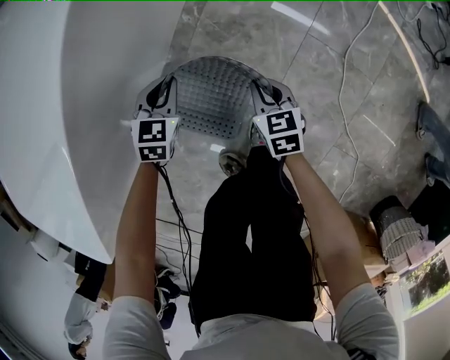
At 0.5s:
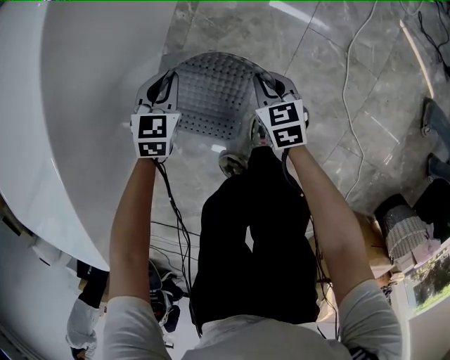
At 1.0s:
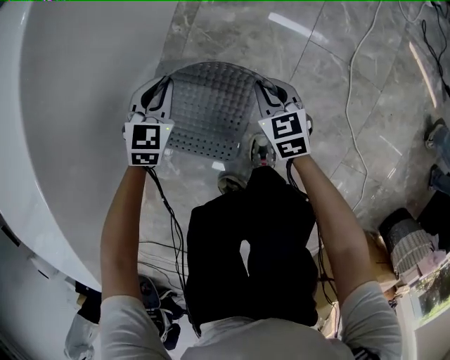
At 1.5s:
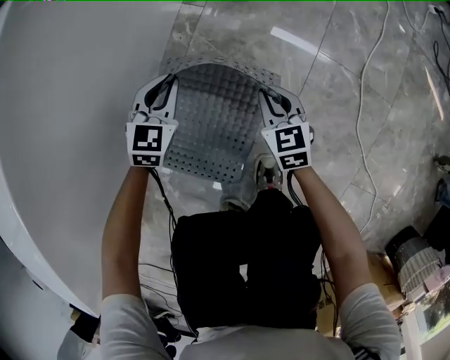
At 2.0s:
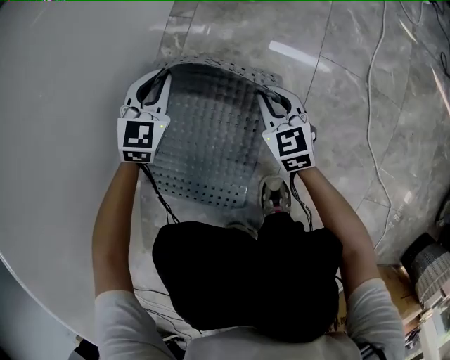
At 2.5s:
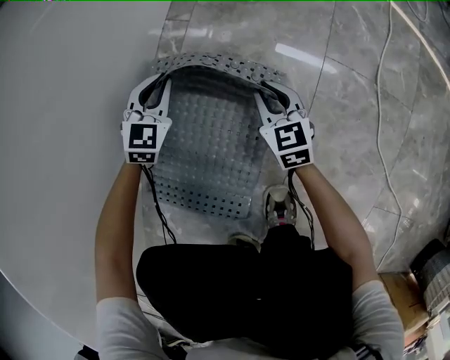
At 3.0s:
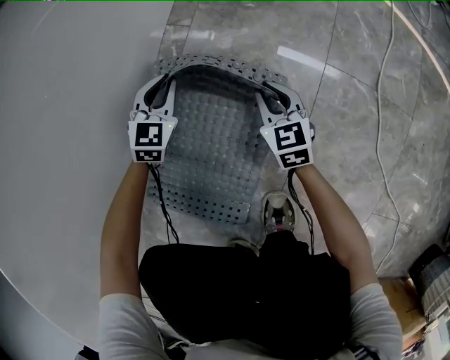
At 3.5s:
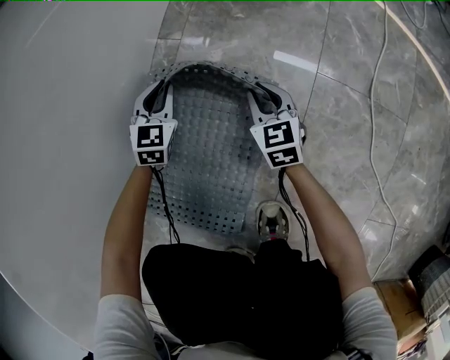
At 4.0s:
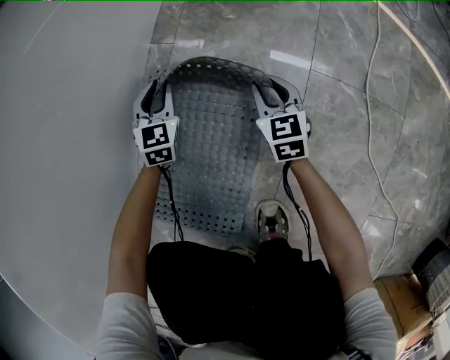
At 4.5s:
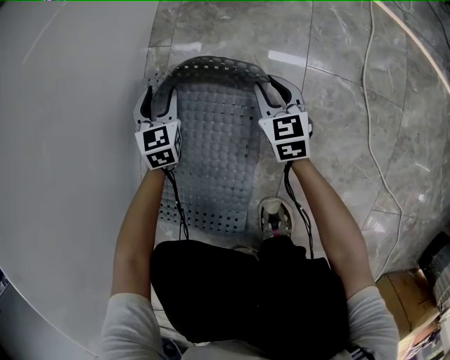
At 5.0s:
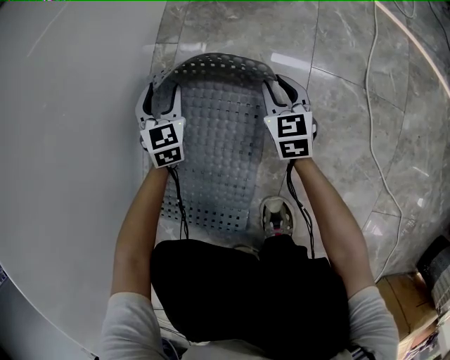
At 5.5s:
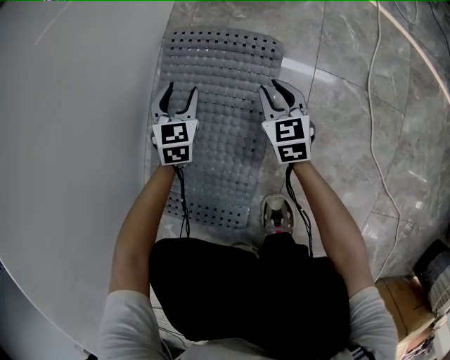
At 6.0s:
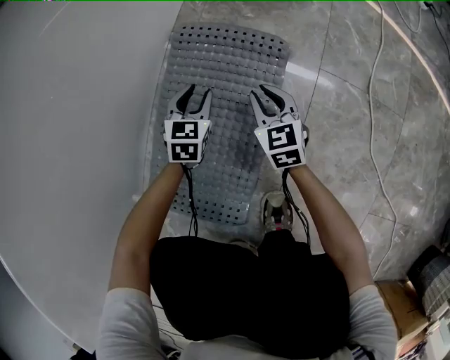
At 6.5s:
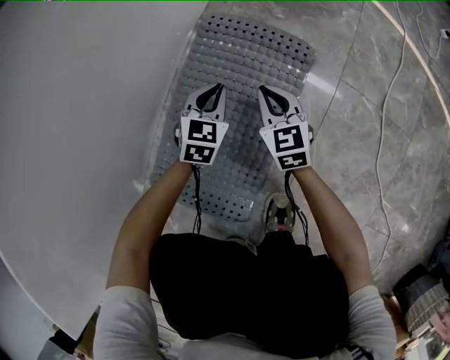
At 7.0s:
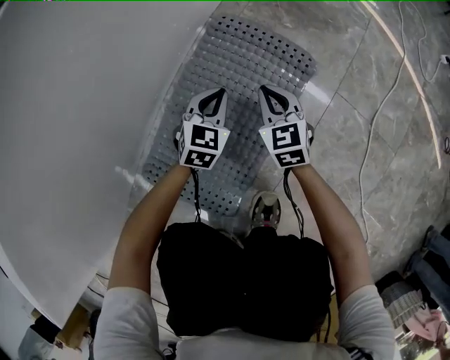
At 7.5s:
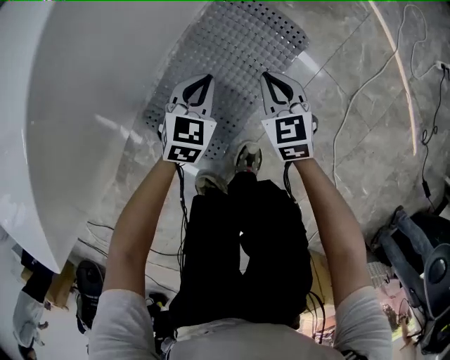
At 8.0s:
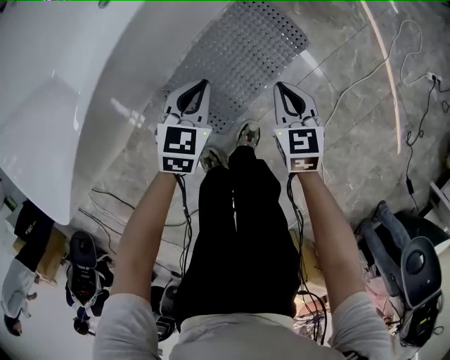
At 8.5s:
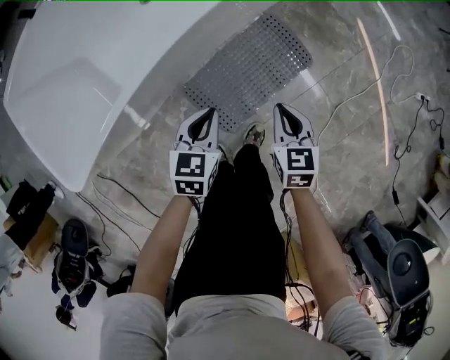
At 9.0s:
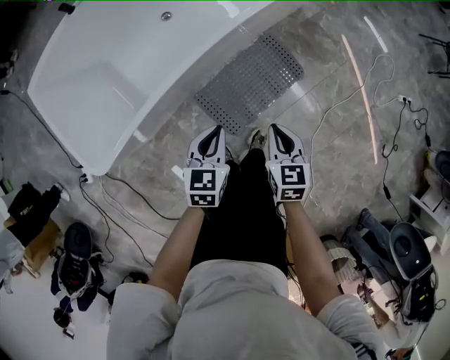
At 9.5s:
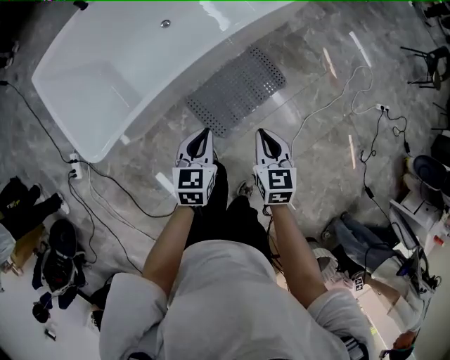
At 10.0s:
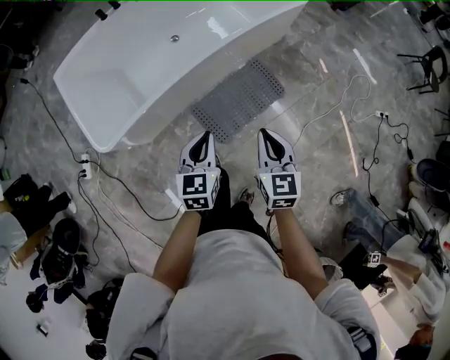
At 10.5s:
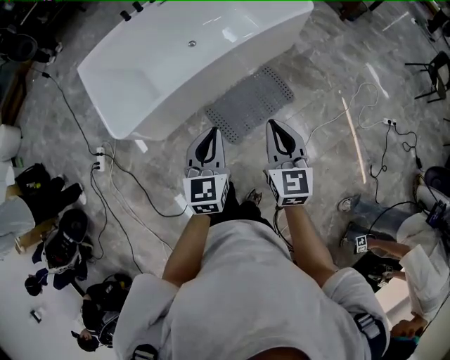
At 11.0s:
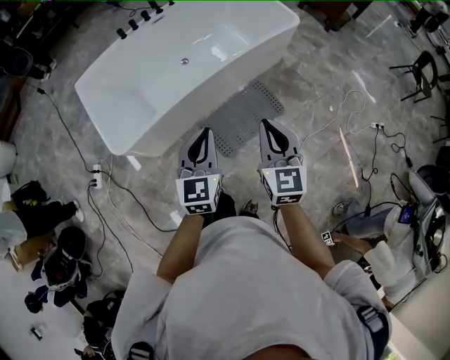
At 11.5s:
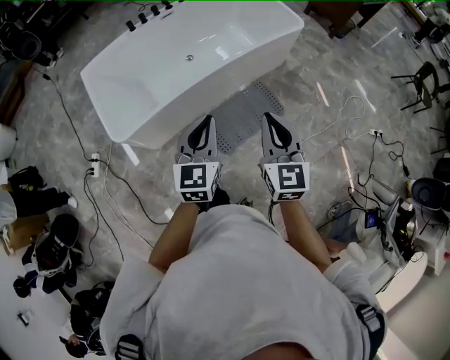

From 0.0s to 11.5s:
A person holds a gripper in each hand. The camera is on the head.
From 0.0s to 2.0s: The right gripper heads downward, covering approximately 20 cm, and rotates approximately 20 degrees. Meanwhile the left gripper goes approximately 20 cm downward and forward, and swivels some 30 degrees.
From 2.0s to 4.0s: The left gripper goes some 10 cm downward and forward, while the right gripper travels forward and to the right by approximately 10 cm.
From 4.0s to 6.0s: The left gripper shifts about 5 cm backward, and opens its fingers. The right gripper goes about 5 cm to the left.
From 6.0s to 7.5s: The left gripper goes approximately 20 cm upward and backward, and closes; the right gripper heads upward, covering about 15 cm, and rotates about 20 degrees.
From 7.5s to 9.5s: The left gripper moves upward and backward, roughly 60 cm, and swivels approximately 30 degrees. Meanwhile the right gripper heads upward, covering roughly 50 cm.
From 9.5s to 11.5s: The right gripper heads upward, covering roughly 30 cm, and turns by about 30 degrees. The left gripper heads upward and backward, covering approximately 30 cm, and rotates approximately 30 degrees.

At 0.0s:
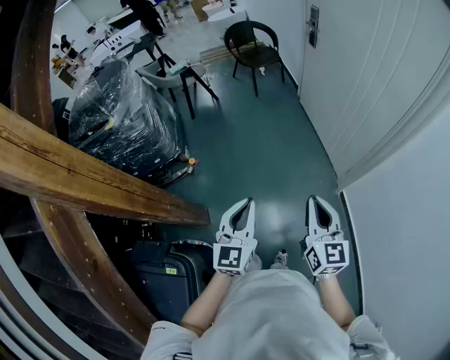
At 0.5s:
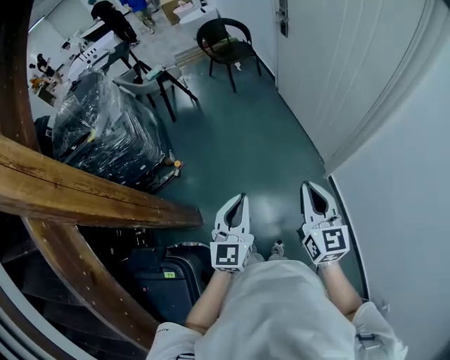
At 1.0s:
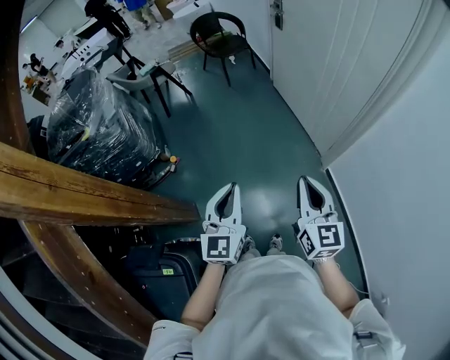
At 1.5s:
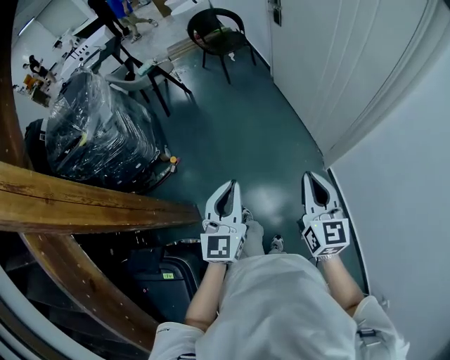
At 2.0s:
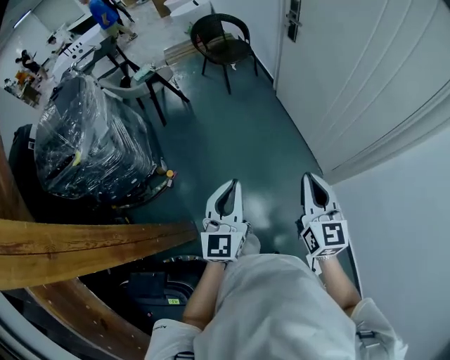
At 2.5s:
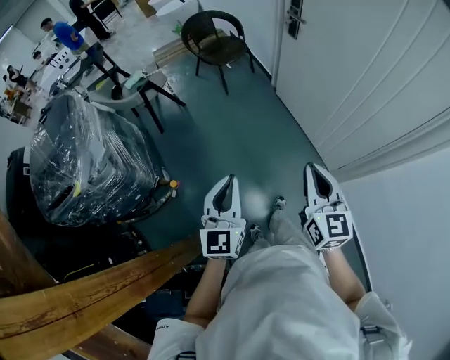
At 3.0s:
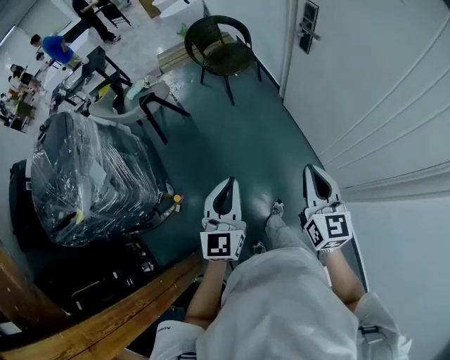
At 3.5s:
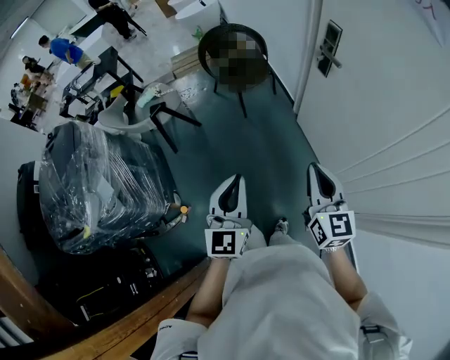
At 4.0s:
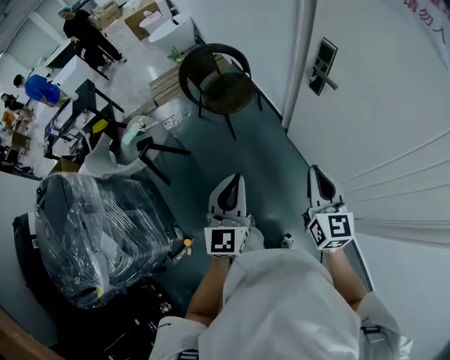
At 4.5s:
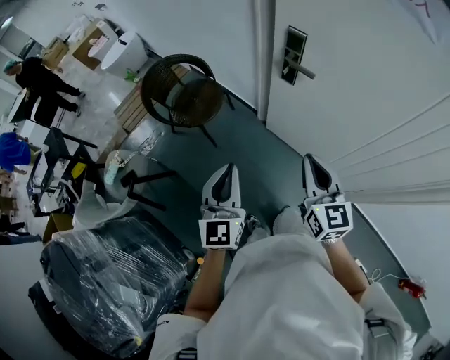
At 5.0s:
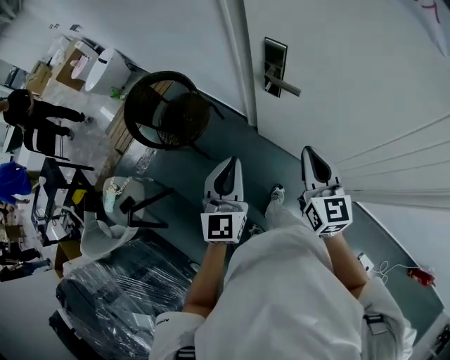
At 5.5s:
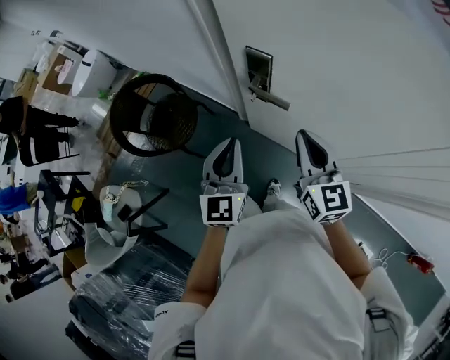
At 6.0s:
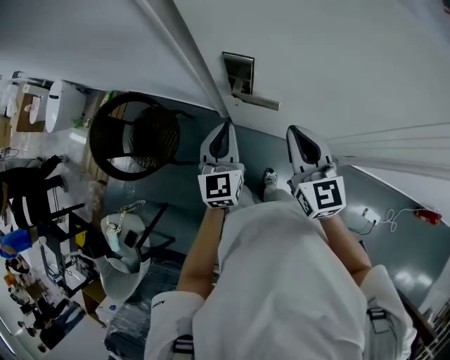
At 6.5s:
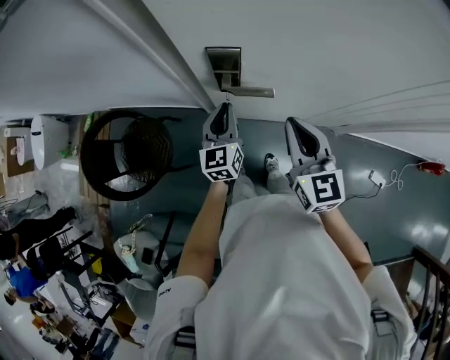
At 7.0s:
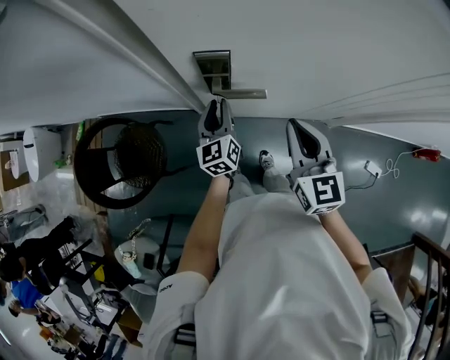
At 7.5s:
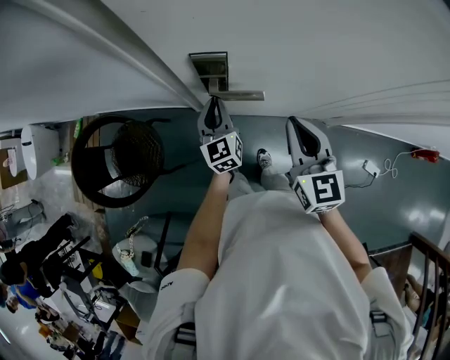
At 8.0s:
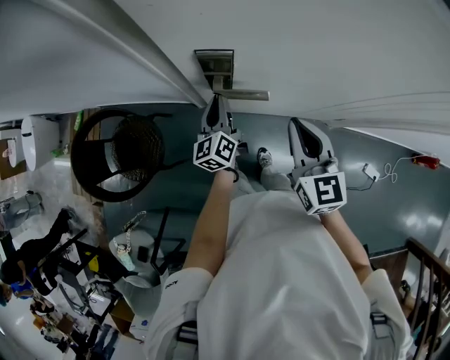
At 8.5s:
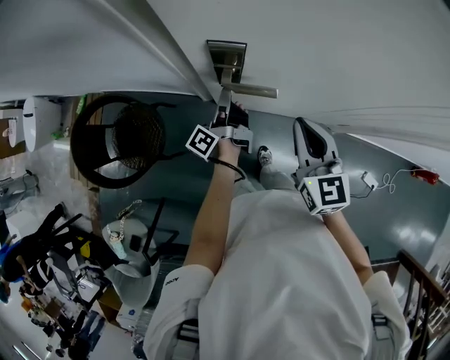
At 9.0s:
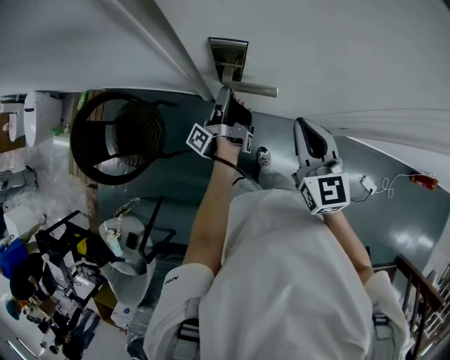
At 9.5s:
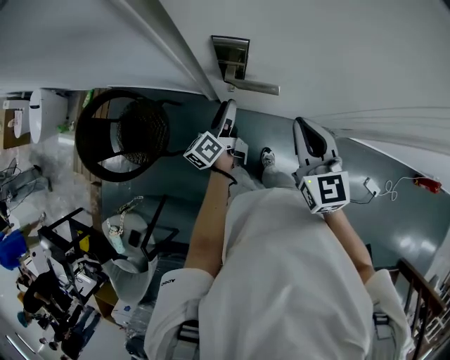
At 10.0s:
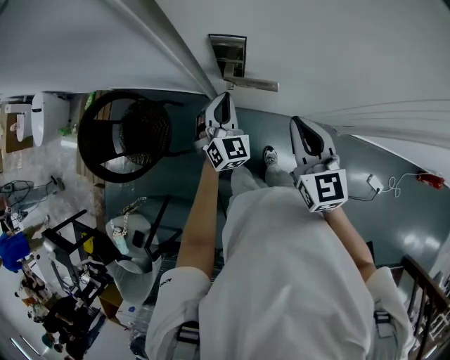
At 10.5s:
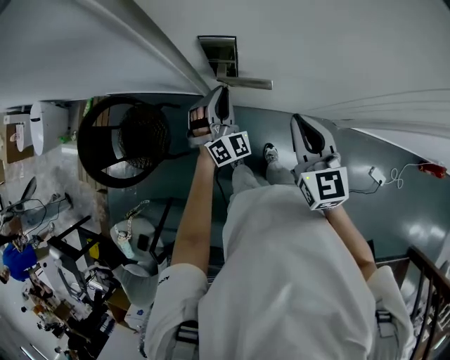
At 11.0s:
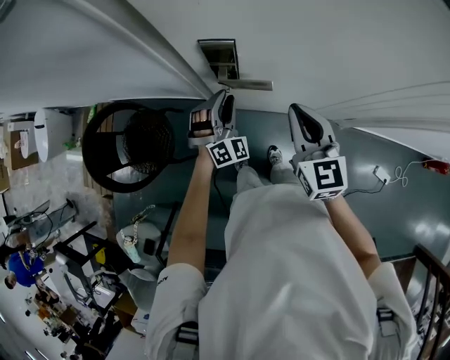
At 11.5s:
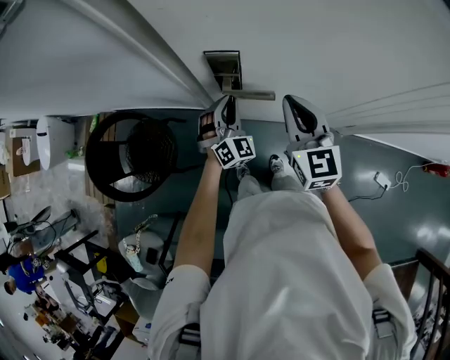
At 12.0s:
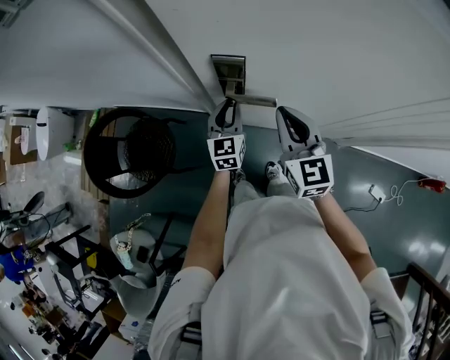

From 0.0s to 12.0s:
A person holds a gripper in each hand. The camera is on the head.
From 0.0s to 2.0s: Both grippers move forward, approximately 20 cm.
From 2.0s to 4.0s: The two grippers travel together, forward, roughly 50 cm.
From 4.0s to 6.0s: The left gripper changes place by approximately 50 cm, and turns by some 40 degrees, while the right gripper ends up some 30 cm from where it was, and rotates roughly 30 degrees.
From 6.0s to 8.0s: The left gripper is displaced downward and forward by some 15 cm, and turns by approximately 40 degrees.
From 8.0s to 10.0s: The left gripper rolls clockwise, seen from behind, by roughly 70 degrees, and opens and closes again.
From 10.0s to 12.0s: The right gripper is displaced forward by some 5 cm; the left gripper rotates roughly 40 degrees.

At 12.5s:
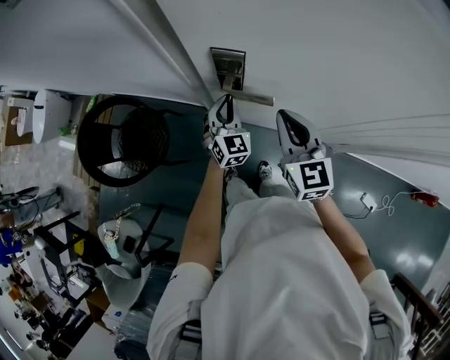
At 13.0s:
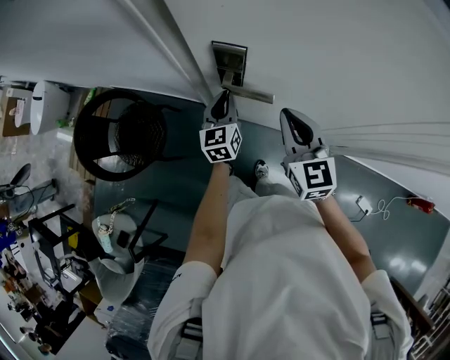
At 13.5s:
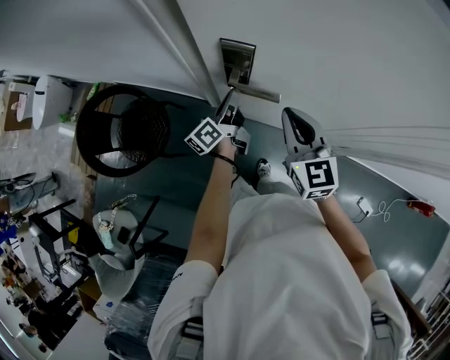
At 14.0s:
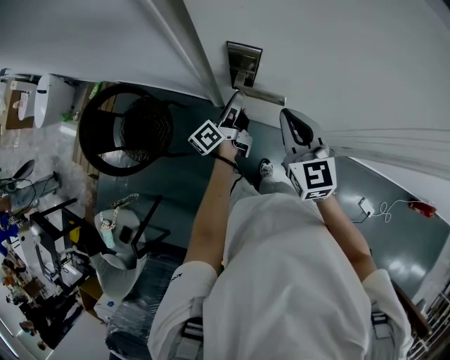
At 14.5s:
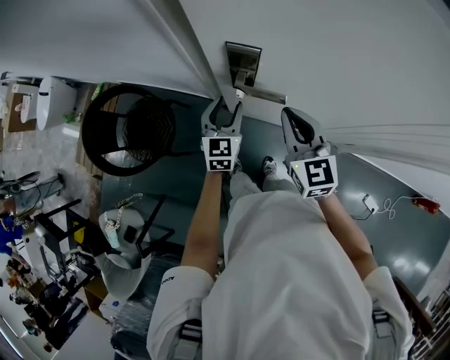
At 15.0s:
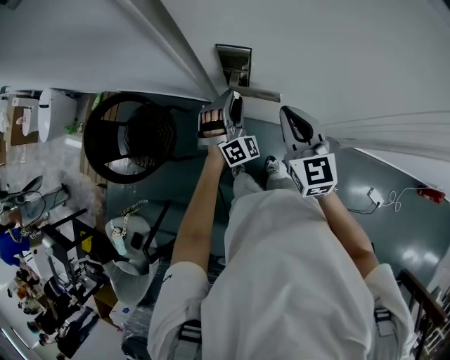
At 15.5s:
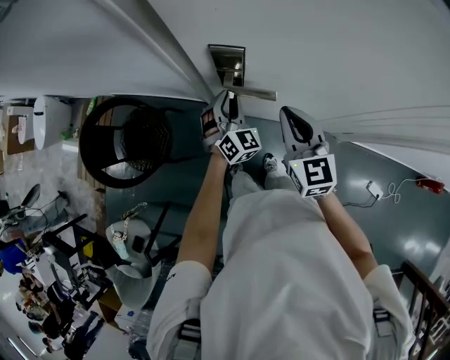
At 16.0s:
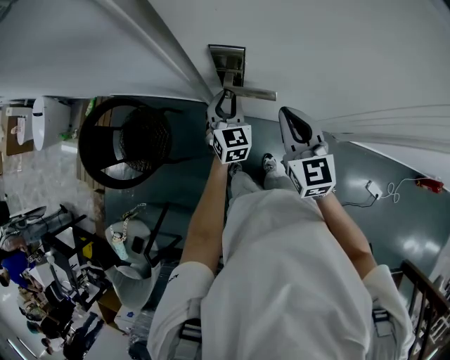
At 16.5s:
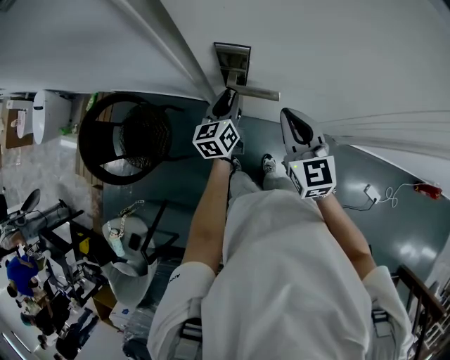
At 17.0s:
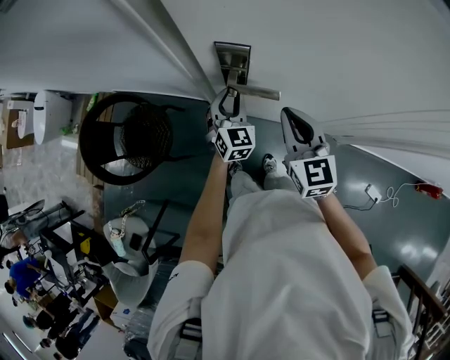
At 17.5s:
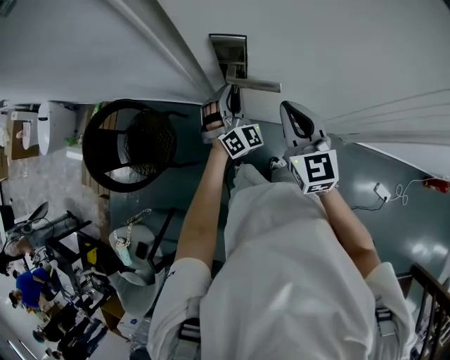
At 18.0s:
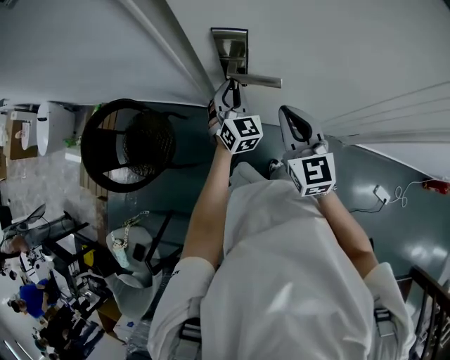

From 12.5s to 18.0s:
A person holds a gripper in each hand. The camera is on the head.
From 12.5s to 14.5s: The left gripper opens its fingers.
From 14.5s to 16.0s: The left gripper closes.
